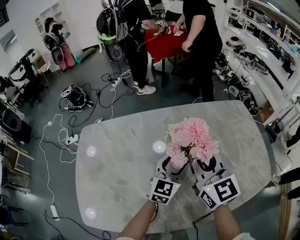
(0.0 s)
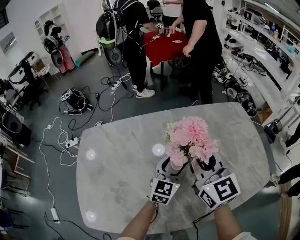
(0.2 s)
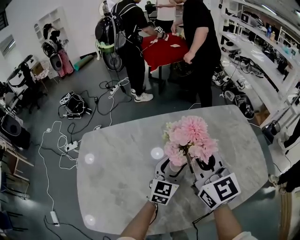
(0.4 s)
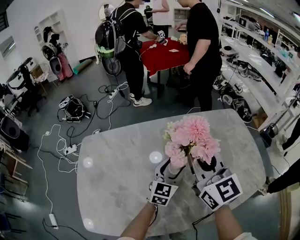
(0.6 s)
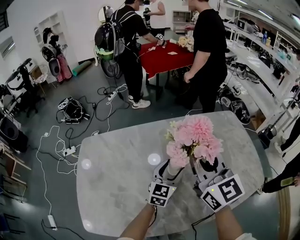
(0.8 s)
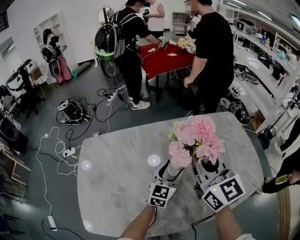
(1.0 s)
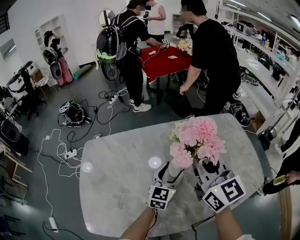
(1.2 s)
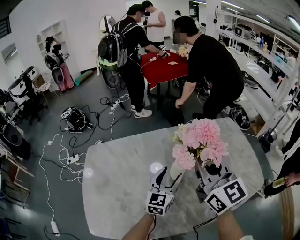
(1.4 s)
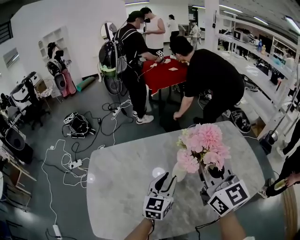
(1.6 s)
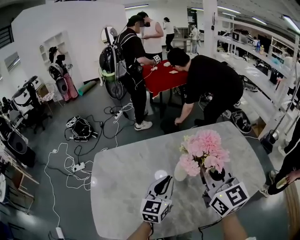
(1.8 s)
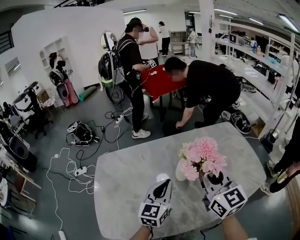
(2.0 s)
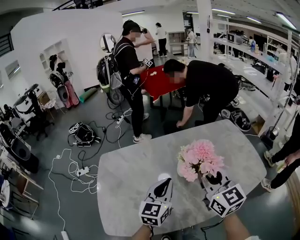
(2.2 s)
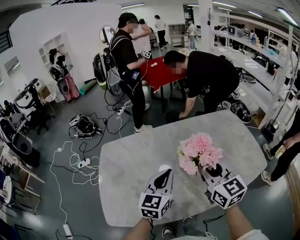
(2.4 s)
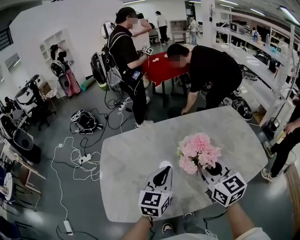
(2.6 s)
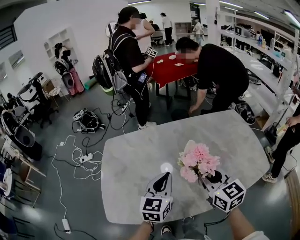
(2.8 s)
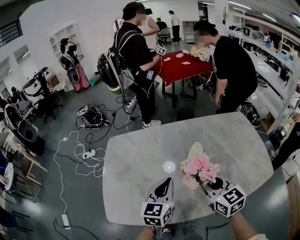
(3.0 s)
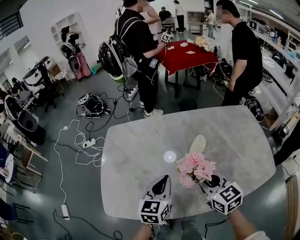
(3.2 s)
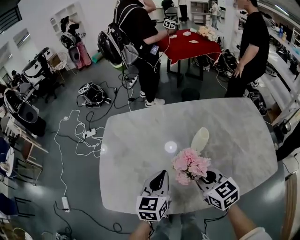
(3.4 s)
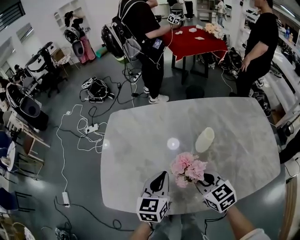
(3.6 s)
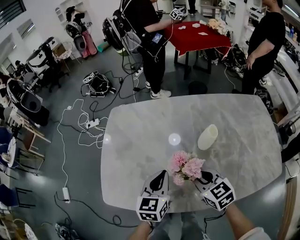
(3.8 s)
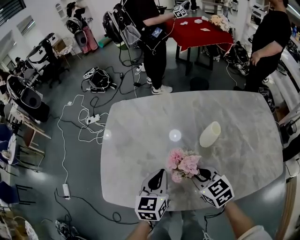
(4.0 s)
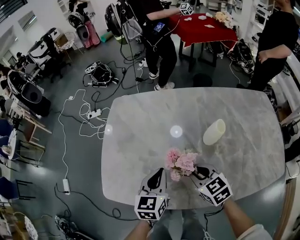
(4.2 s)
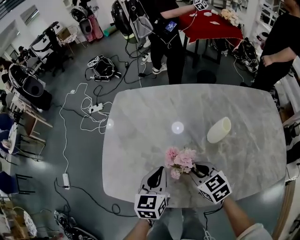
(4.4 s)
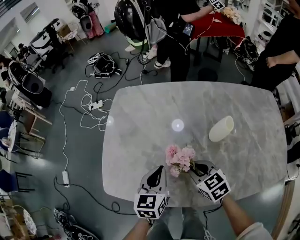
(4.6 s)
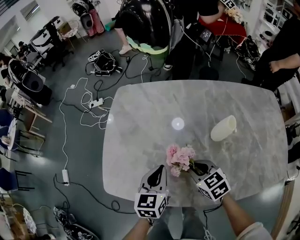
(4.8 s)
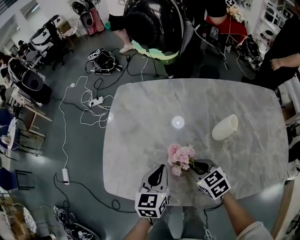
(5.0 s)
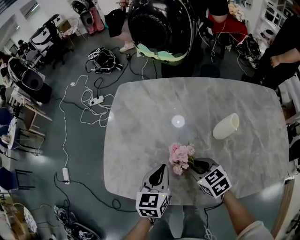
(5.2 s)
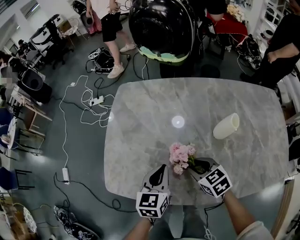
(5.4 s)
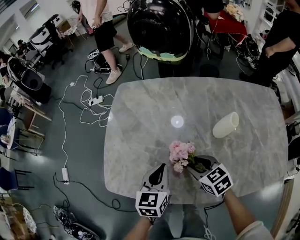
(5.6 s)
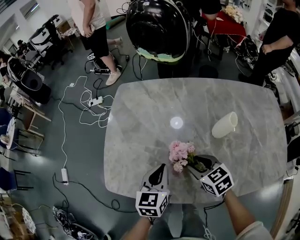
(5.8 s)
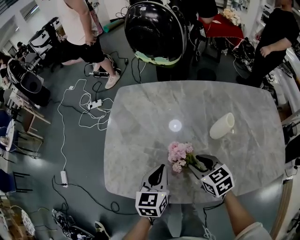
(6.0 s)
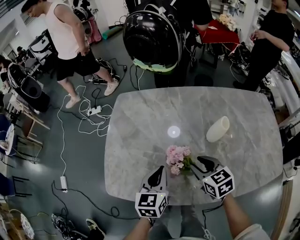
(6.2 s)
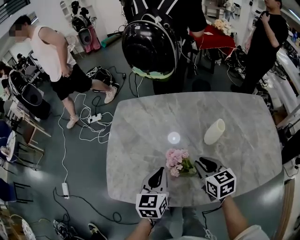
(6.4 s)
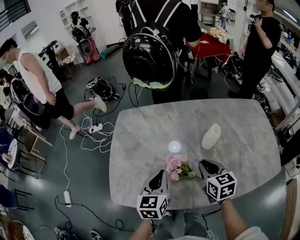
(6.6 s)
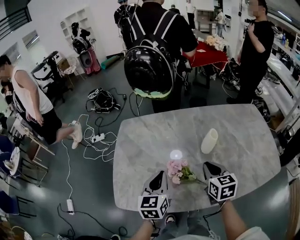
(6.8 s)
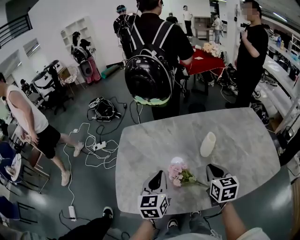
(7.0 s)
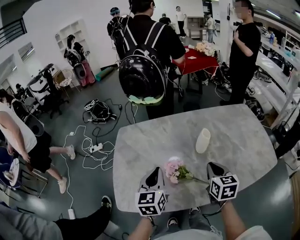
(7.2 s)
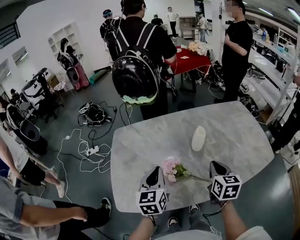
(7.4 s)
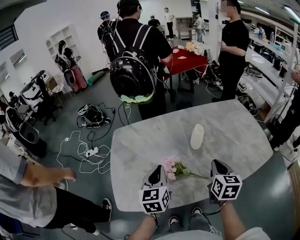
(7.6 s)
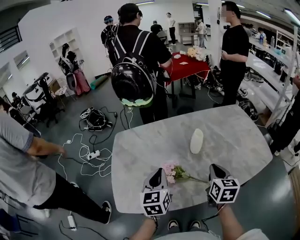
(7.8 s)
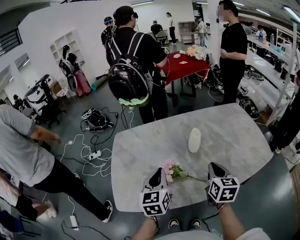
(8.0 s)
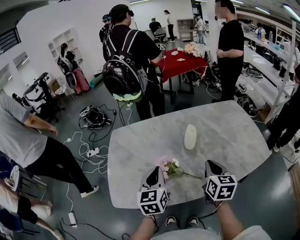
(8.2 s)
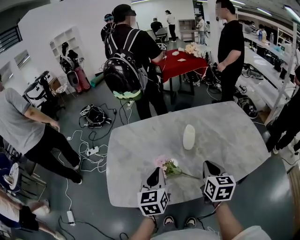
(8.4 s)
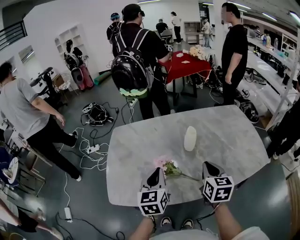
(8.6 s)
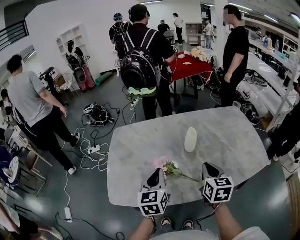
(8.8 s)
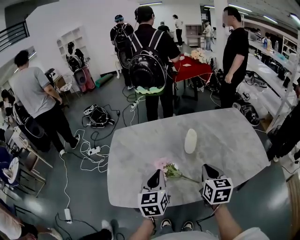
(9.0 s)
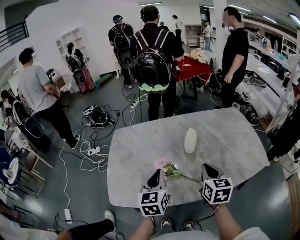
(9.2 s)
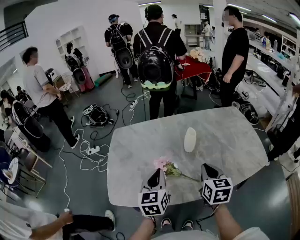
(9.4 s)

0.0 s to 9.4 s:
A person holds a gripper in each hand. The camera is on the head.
0.0 to 1.6 s: The right gripper goes about 10 cm upward, while the left gripper is displaced upward and to the left by roughly 10 cm, and closes.
1.6 to 3.2 s: The left gripper is displaced backward and to the left by roughly 15 cm, and closes up. The right gripper travels downward and backward by about 20 cm, and rotates roughly 30 degrees.
3.2 to 4.8 s: The right gripper moves downward and to the left, some 15 cm, and turns by approximately 30 degrees, while the left gripper moves downward and to the left, some 10 cm.
4.8 to 6.2 s: The grippers move only a little.
6.2 to 7.8 s: The left gripper is displaced upward by some 10 cm. Meanwhile the right gripper shifts some 20 cm to the right, upward and backward, rotates about 50 degrees, and closes.
7.8 to 9.4 s: The grippers stay close to where they were, moving slightly.

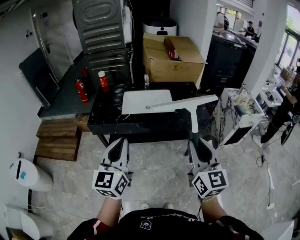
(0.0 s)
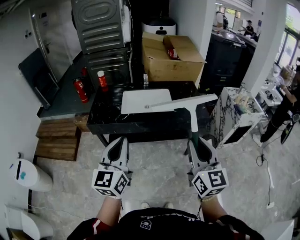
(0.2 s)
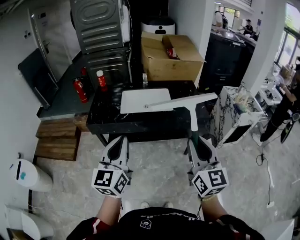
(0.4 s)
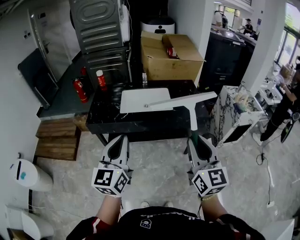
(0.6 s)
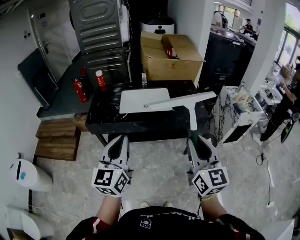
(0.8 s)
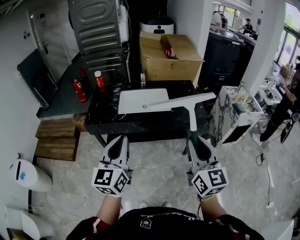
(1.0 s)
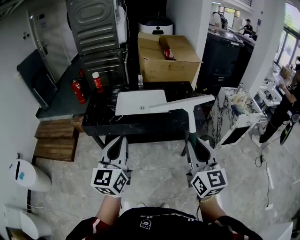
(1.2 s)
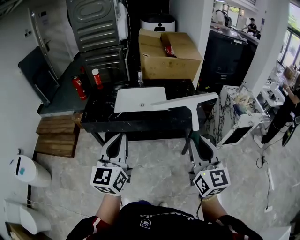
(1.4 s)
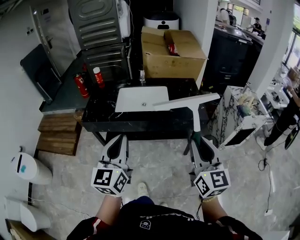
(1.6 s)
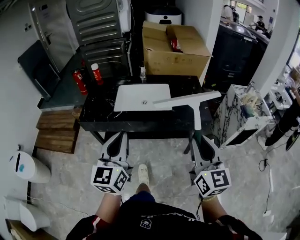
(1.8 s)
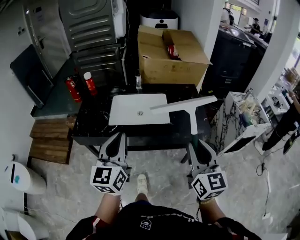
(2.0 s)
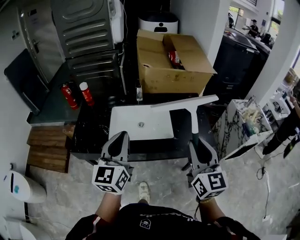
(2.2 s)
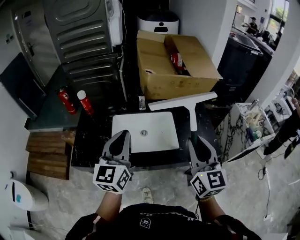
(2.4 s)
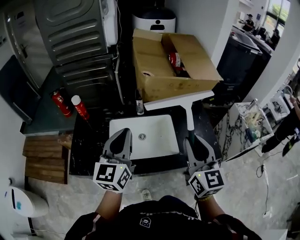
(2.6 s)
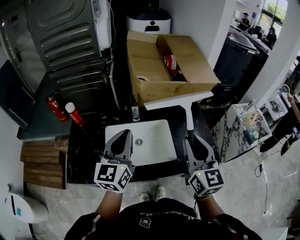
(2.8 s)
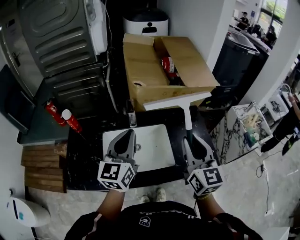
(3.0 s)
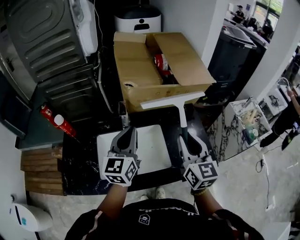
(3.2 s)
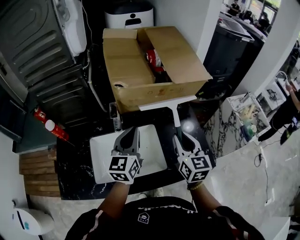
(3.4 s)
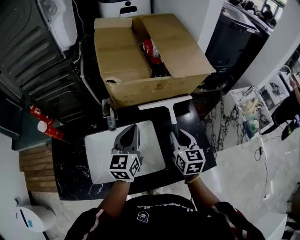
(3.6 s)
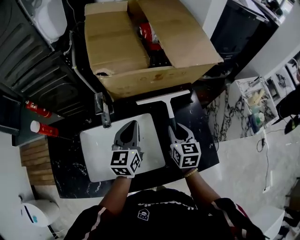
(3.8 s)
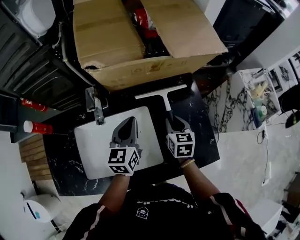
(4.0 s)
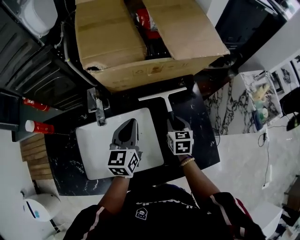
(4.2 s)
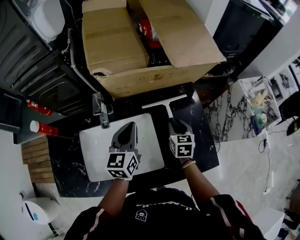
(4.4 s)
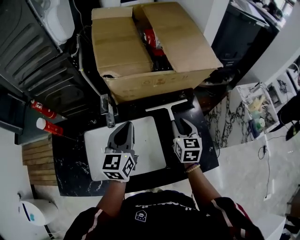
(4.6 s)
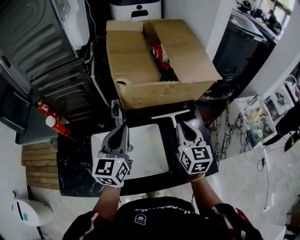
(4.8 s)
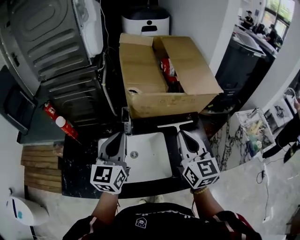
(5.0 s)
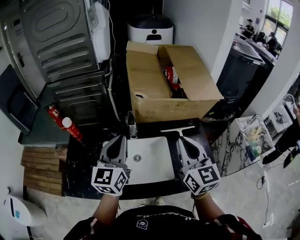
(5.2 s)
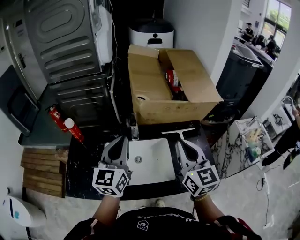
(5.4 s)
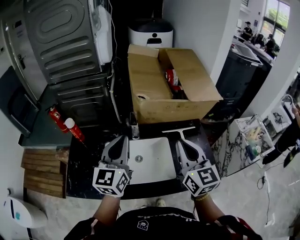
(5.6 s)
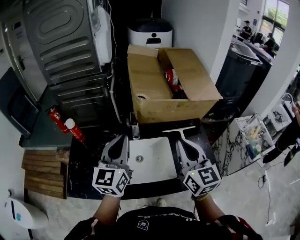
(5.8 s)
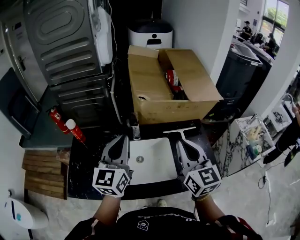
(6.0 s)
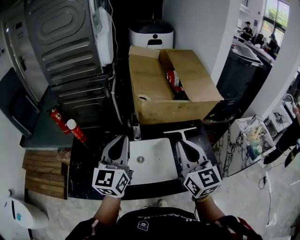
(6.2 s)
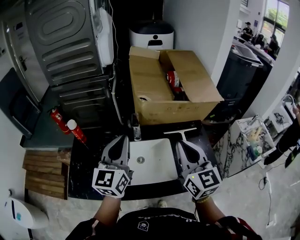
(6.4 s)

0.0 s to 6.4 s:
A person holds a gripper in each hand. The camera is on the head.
0.0 to 1.6 s: The grippers both shift to the right by some 10 cm.
1.6 to 3.2 s: The pair of grippers is taken forward, some 50 cm.
3.2 to 4.8 s: The left gripper is displaced forward by approximately 5 cm, and goes downward and returns, about 20 cm each way; the right gripper shifts some 10 cm forward, and reaches approximately 30 cm downward, then returns.
4.8 to 6.4 s: The left gripper is displaced to the left, upward and backward by some 15 cm. The right gripper heads upward, backward and to the left, covering approximately 20 cm.

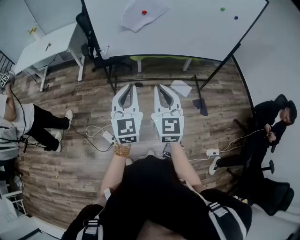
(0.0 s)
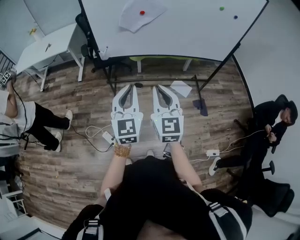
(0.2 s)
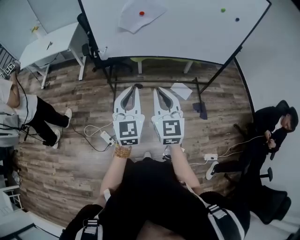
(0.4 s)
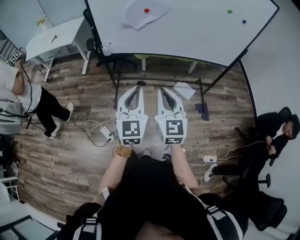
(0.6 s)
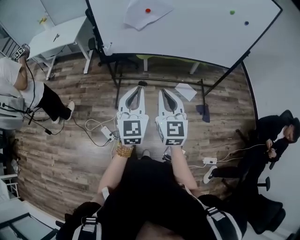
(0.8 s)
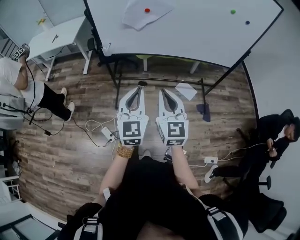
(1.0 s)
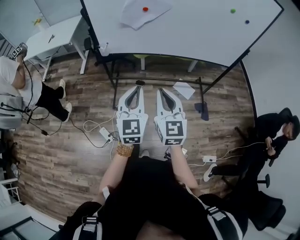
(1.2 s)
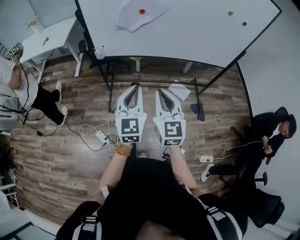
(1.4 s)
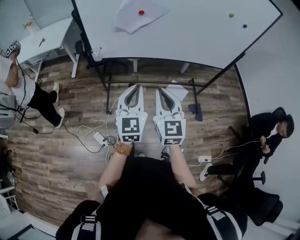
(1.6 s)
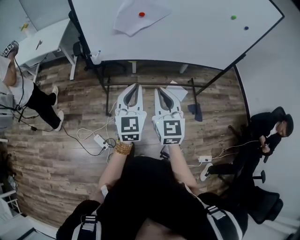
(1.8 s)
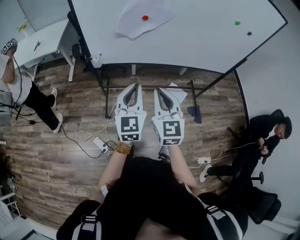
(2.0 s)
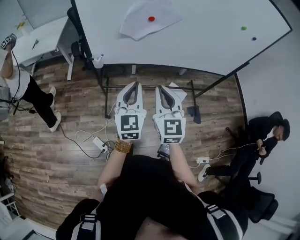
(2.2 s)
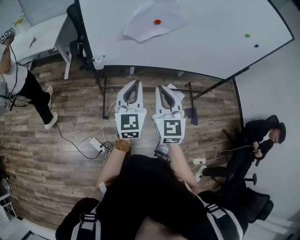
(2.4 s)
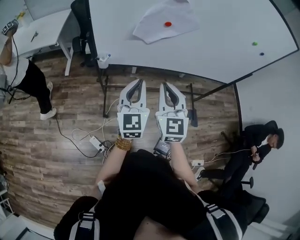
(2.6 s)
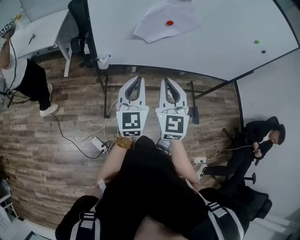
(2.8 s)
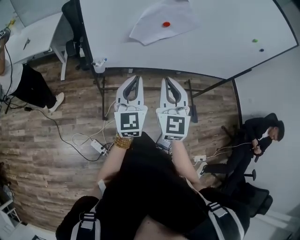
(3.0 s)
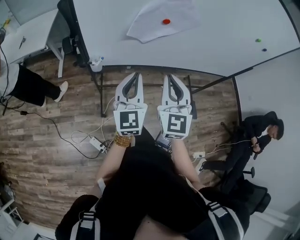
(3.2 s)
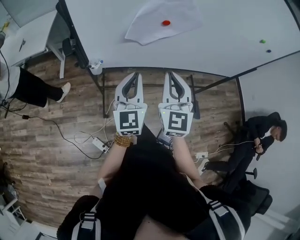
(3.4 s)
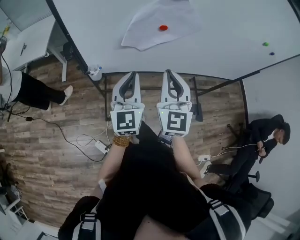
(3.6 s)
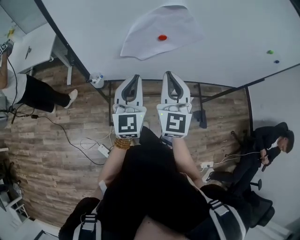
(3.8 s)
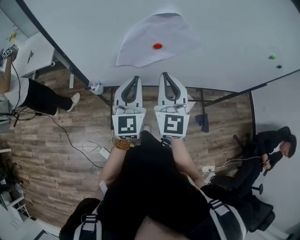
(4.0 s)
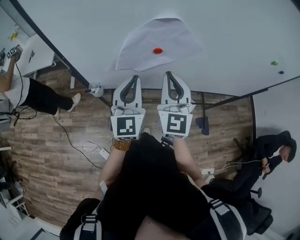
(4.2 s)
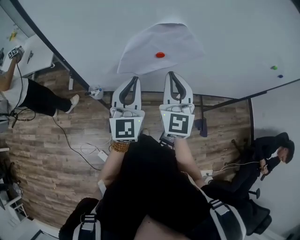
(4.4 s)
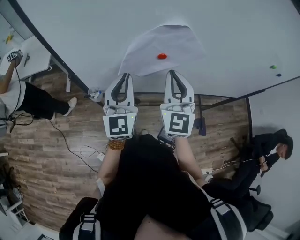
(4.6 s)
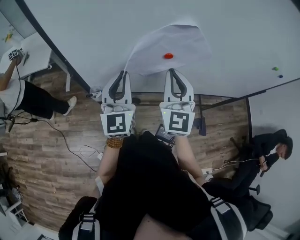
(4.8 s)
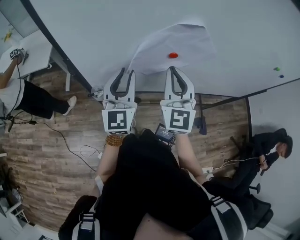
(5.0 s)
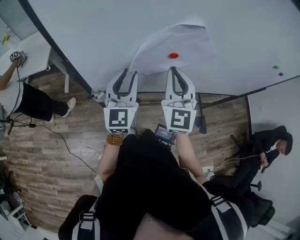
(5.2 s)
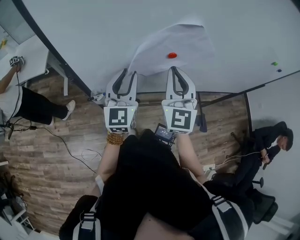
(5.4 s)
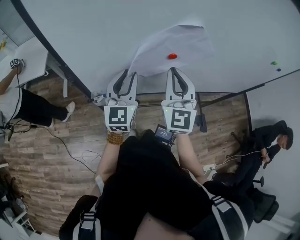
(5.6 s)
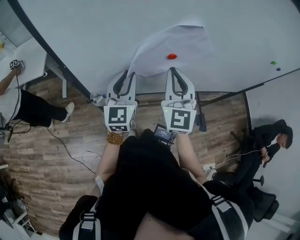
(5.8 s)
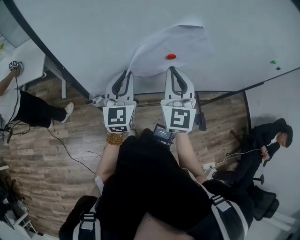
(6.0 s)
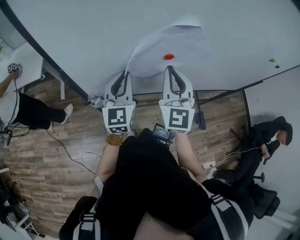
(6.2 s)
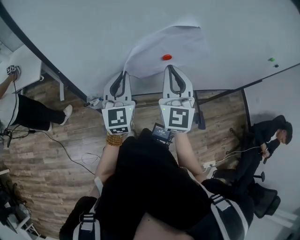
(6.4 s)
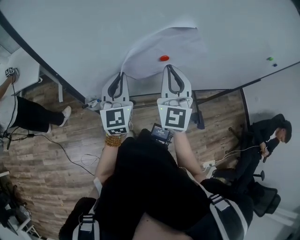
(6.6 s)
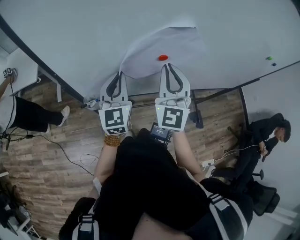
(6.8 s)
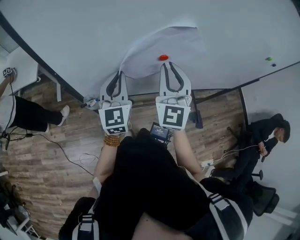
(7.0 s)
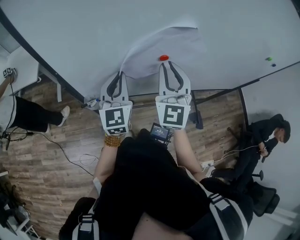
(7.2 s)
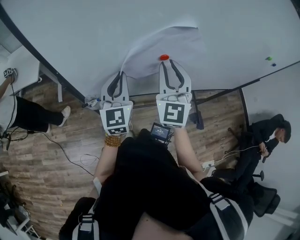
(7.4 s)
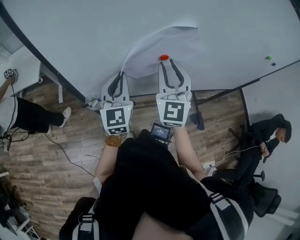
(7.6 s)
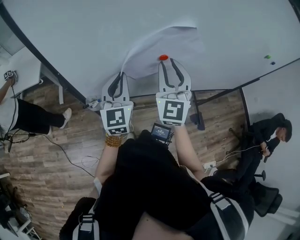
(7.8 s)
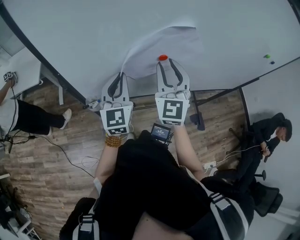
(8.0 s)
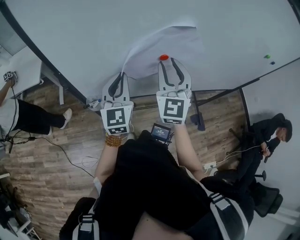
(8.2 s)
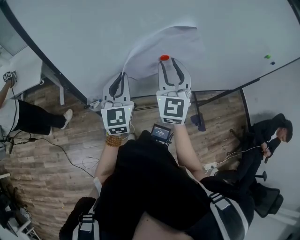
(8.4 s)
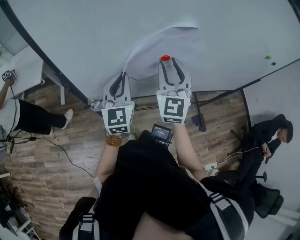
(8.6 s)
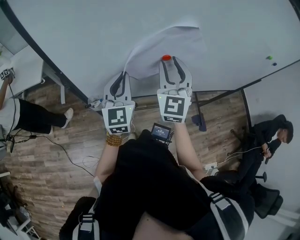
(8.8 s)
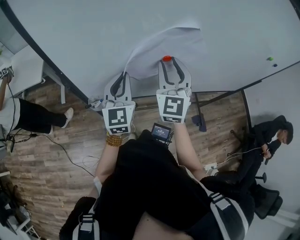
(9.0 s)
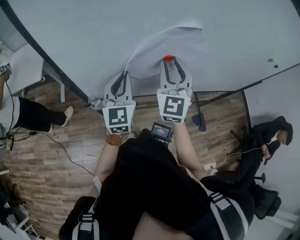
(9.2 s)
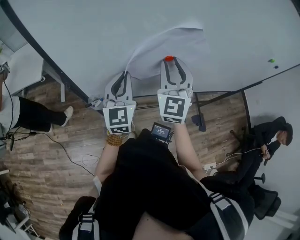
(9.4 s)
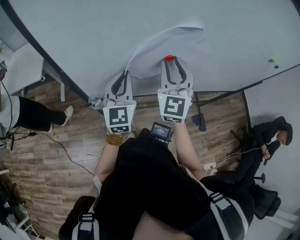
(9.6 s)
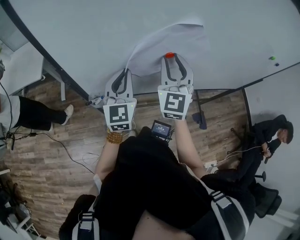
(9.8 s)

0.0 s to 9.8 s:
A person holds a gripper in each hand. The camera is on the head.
0.0 to 1.4 s: The left gripper travels to the right and forward by roughly 10 cm; the right gripper heads forward and to the right, covering roughly 10 cm.
1.4 to 2.8 s: Both grippers move forward and to the left, some 20 cm.
2.8 to 4.2 s: The two grippers go roughly 20 cm forward.
4.2 to 5.6 s: The right gripper ends up about 5 cm from where it was. The left gripper travels to the left and forward by roughly 10 cm, and opens its fingers.
5.6 to 7.0 s: The left gripper closes its fingers.
7.0 to 8.4 s: The right gripper opens.
8.4 to 9.8 s: Neither gripper changes place.
